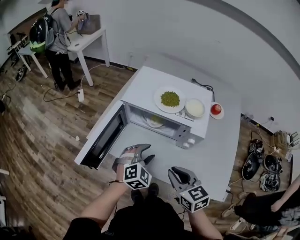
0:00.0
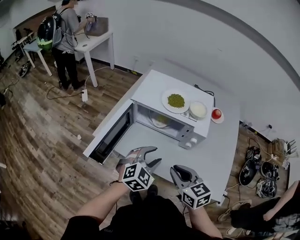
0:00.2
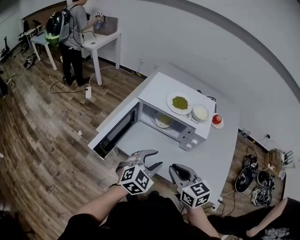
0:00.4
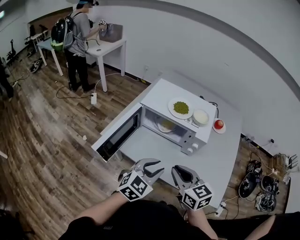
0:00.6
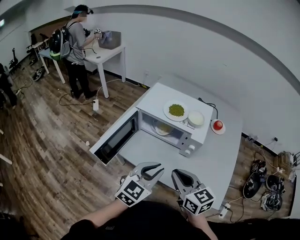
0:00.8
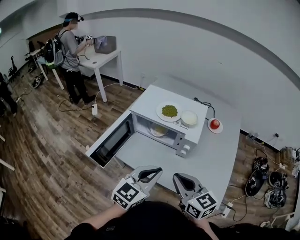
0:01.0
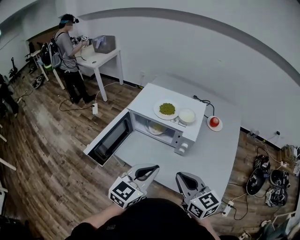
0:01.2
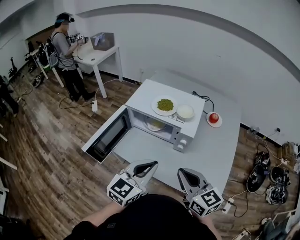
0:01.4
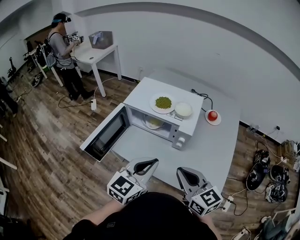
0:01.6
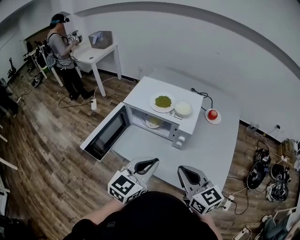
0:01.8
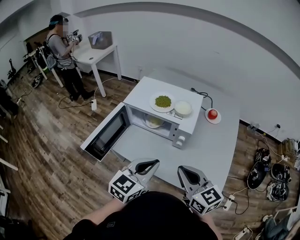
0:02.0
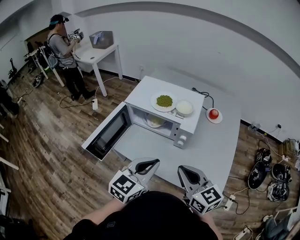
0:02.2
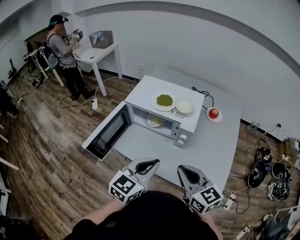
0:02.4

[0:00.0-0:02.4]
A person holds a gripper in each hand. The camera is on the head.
0:00.0 to 0:01.2: The left gripper shifts about 20 cm upward and backward, rotates about 50 degrees, and closes; the right gripper travels upward, backward and to the right by about 15 cm.
0:01.2 to 0:02.4: There are only small adjustments of the grippers.

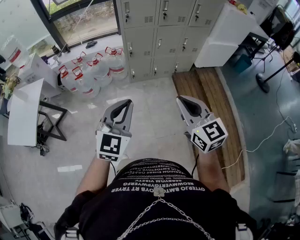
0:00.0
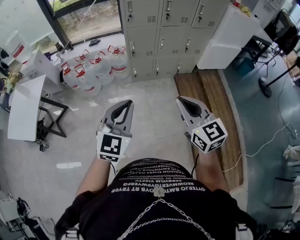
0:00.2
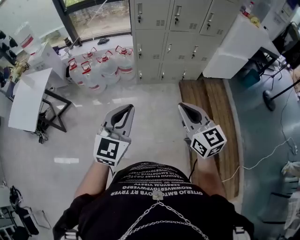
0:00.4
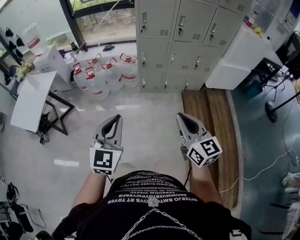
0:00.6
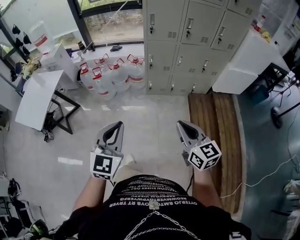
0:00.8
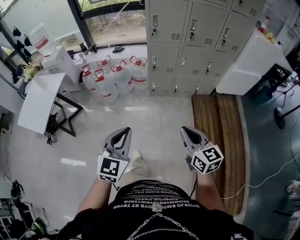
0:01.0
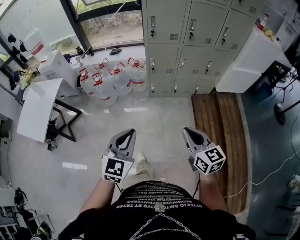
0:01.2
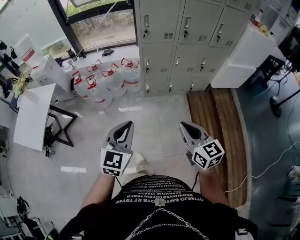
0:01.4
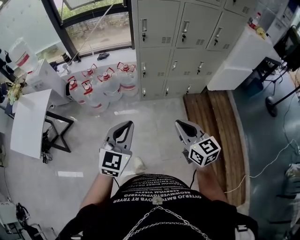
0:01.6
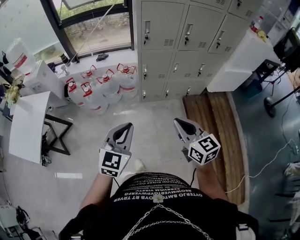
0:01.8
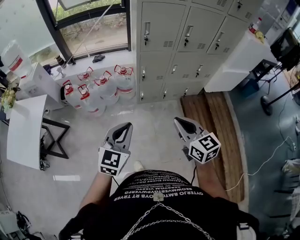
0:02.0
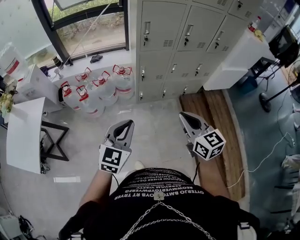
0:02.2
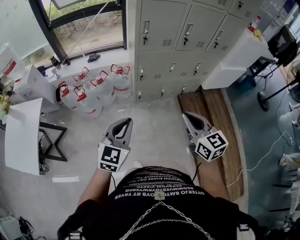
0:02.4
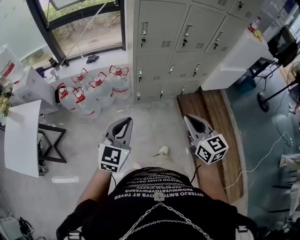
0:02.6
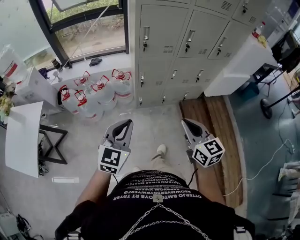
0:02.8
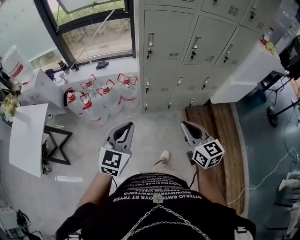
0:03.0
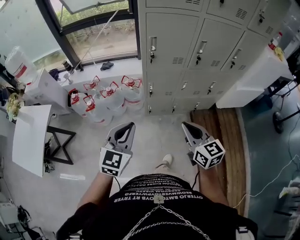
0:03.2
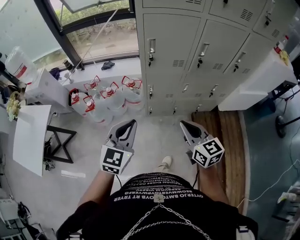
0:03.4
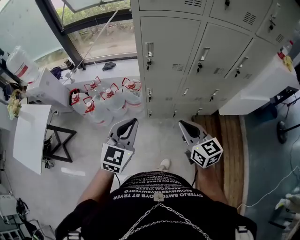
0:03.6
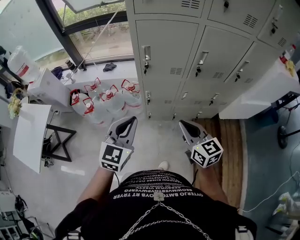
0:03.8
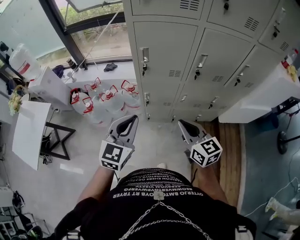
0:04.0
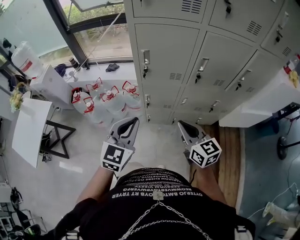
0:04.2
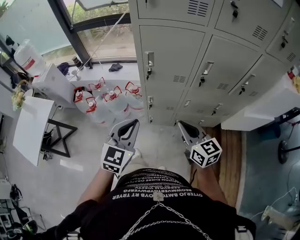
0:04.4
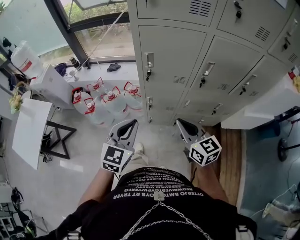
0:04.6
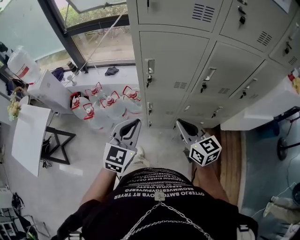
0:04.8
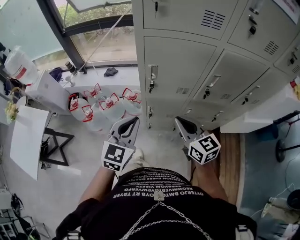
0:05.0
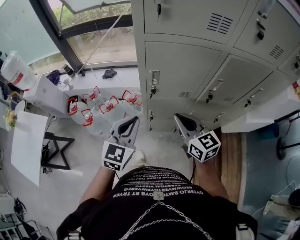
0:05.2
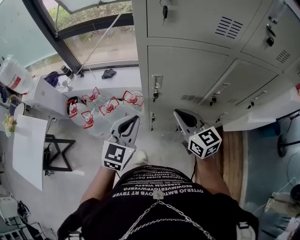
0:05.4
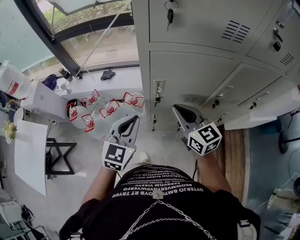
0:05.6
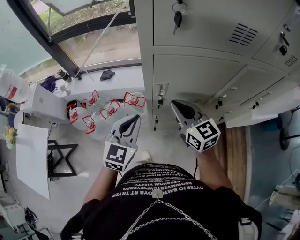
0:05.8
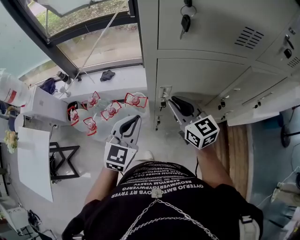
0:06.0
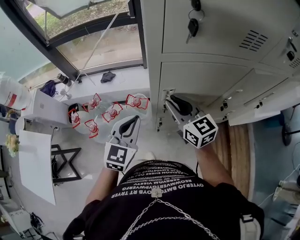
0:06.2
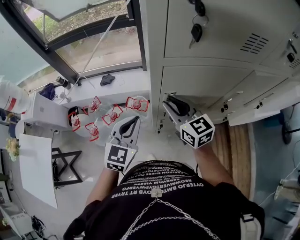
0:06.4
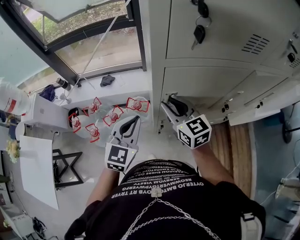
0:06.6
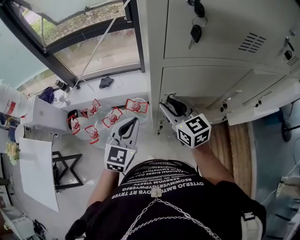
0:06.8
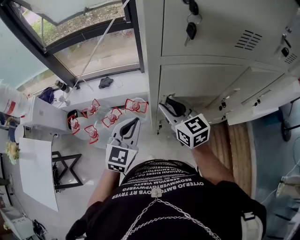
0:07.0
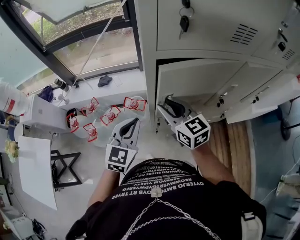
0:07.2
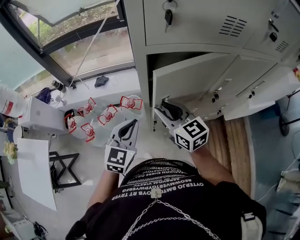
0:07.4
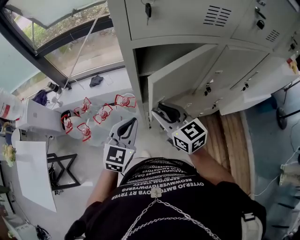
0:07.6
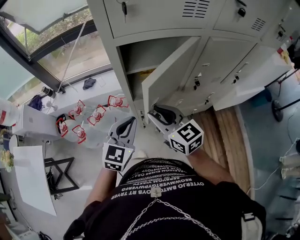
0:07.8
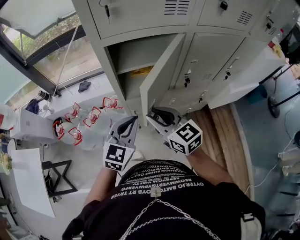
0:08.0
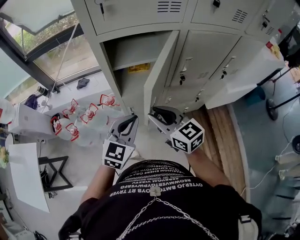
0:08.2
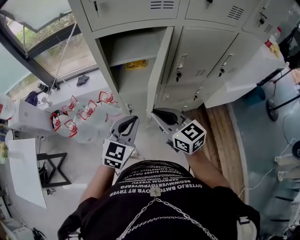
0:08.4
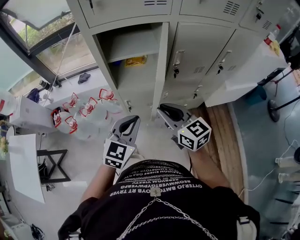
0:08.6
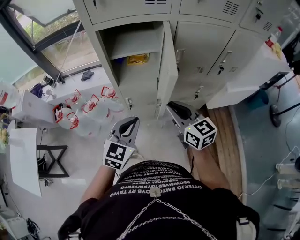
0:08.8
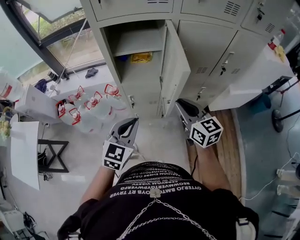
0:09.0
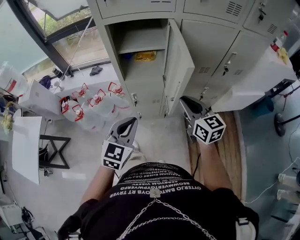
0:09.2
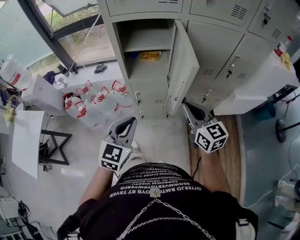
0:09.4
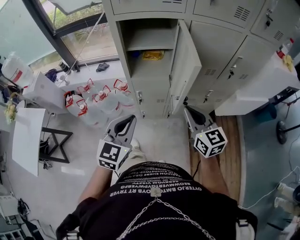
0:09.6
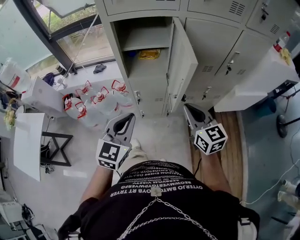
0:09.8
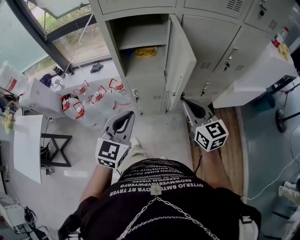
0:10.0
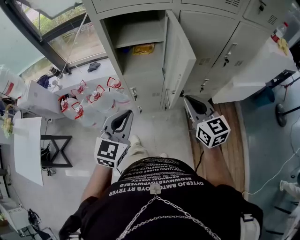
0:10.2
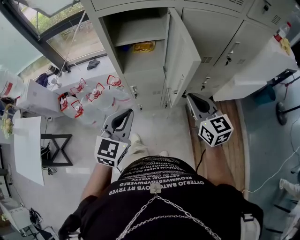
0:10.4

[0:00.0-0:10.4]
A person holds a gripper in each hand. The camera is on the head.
0:00.0 to 0:01.4: The left gripper is displaced forward by roughly 10 cm, while the right gripper is displaced forward and downward by some 10 cm.
0:01.4 to 0:03.0: The two grippers go roughly 20 cm forward.
0:03.0 to 0:04.4: Both grippers travel together forward and to the right, approximately 25 cm.
0:04.4 to 0:06.0: Both grippers move forward, approximately 25 cm.
0:06.0 to 0:07.4: The grippers stay close to where they were, moving slightly.
0:07.4 to 0:09.0: The left gripper is displaced backward and to the right by approximately 25 cm, while the right gripper is displaced to the right and backward by roughly 30 cm.
0:09.0 to 0:10.4: The grippers make only small movements.

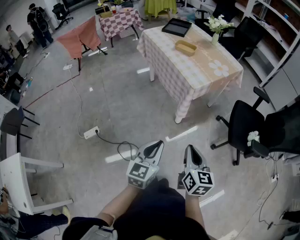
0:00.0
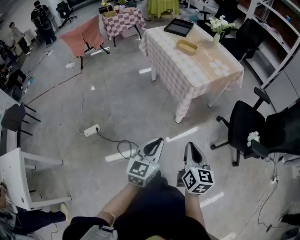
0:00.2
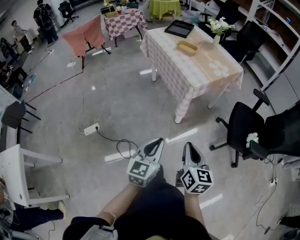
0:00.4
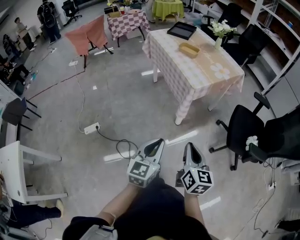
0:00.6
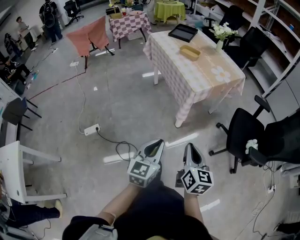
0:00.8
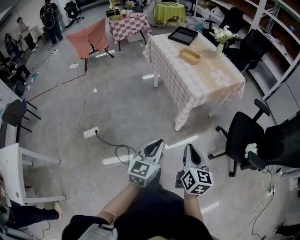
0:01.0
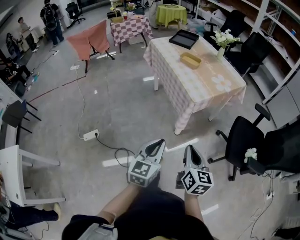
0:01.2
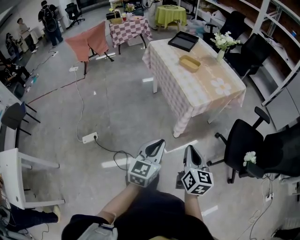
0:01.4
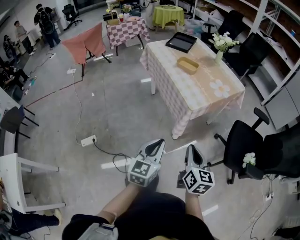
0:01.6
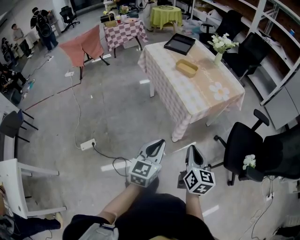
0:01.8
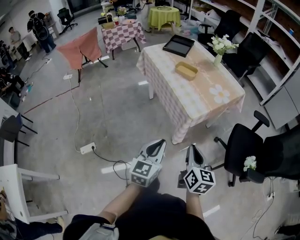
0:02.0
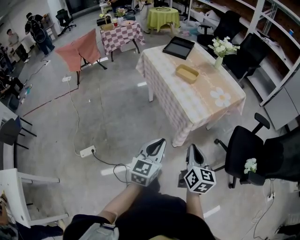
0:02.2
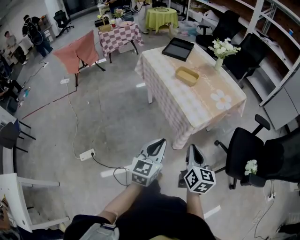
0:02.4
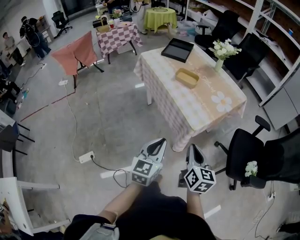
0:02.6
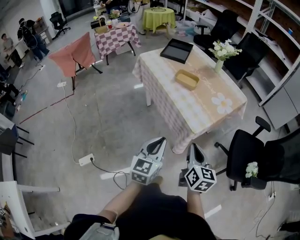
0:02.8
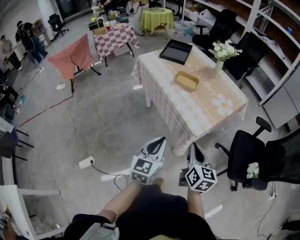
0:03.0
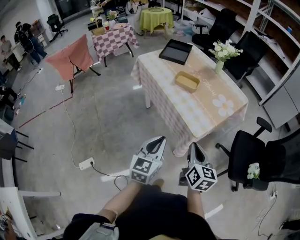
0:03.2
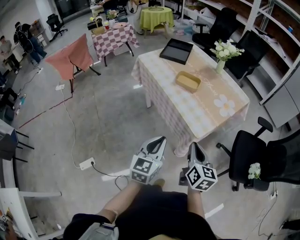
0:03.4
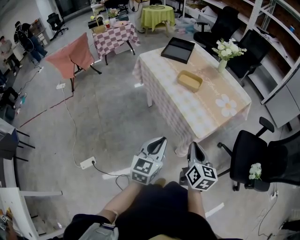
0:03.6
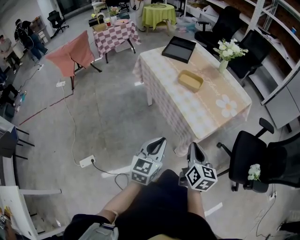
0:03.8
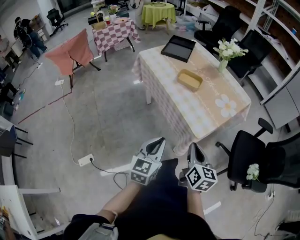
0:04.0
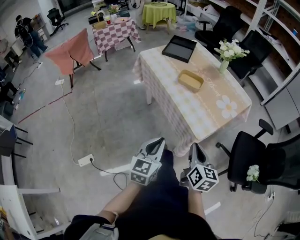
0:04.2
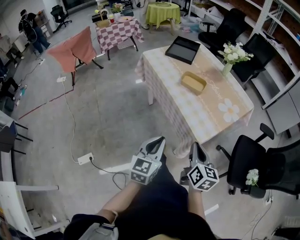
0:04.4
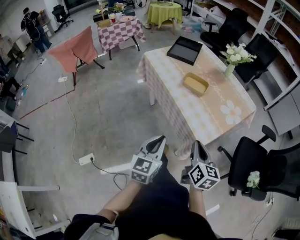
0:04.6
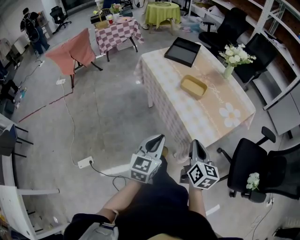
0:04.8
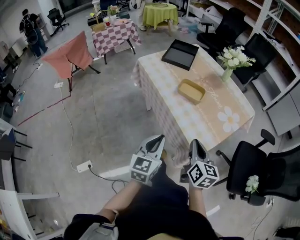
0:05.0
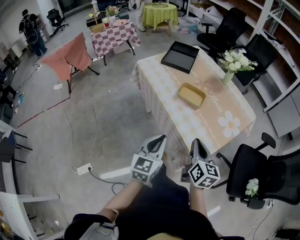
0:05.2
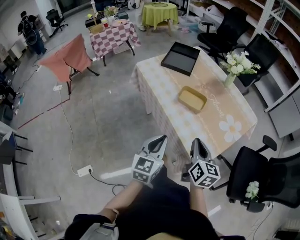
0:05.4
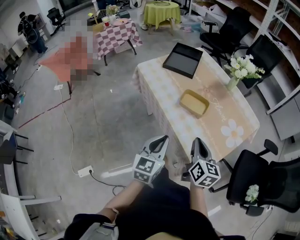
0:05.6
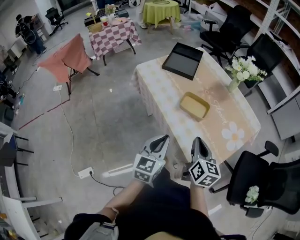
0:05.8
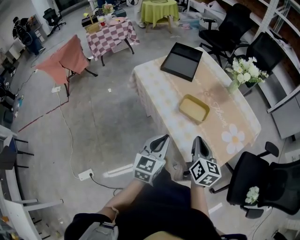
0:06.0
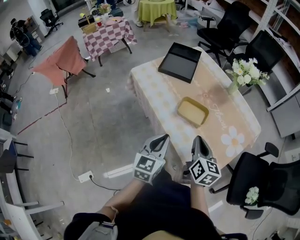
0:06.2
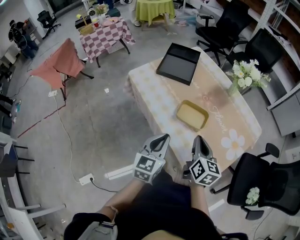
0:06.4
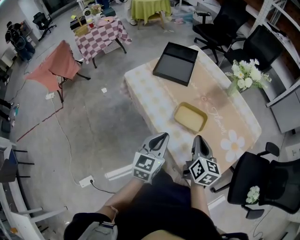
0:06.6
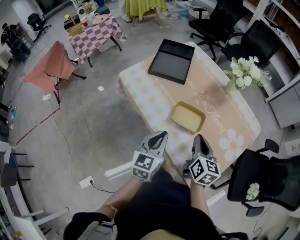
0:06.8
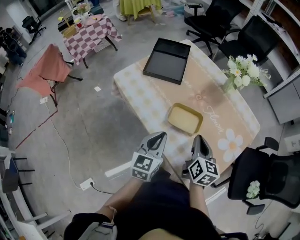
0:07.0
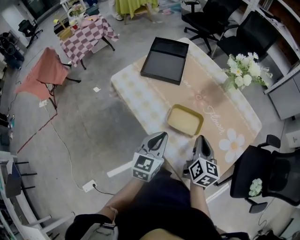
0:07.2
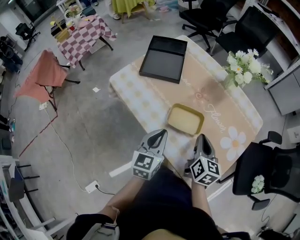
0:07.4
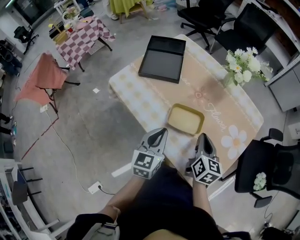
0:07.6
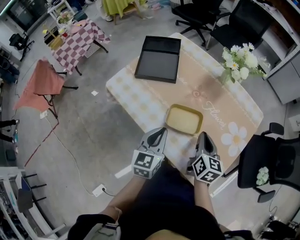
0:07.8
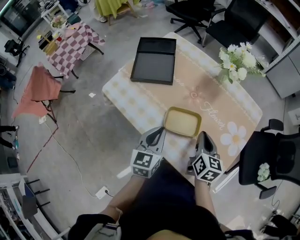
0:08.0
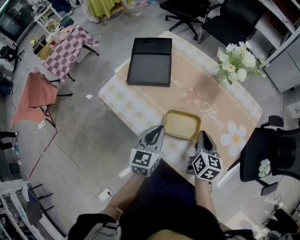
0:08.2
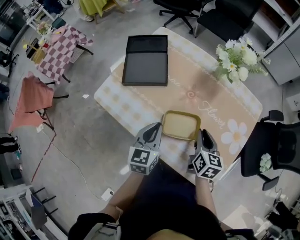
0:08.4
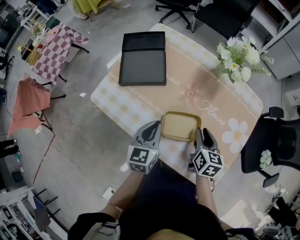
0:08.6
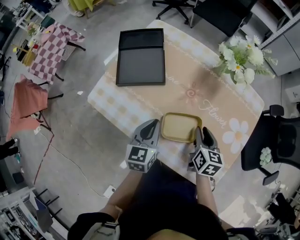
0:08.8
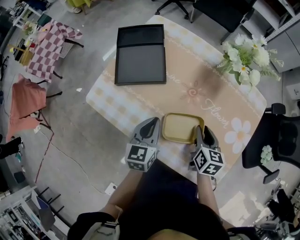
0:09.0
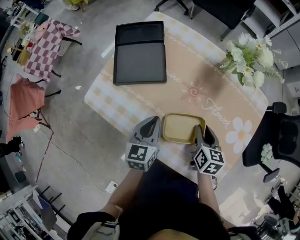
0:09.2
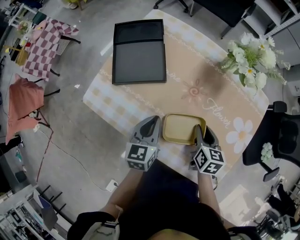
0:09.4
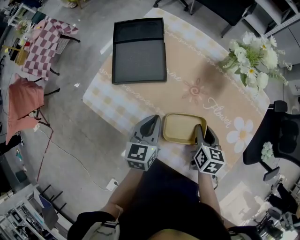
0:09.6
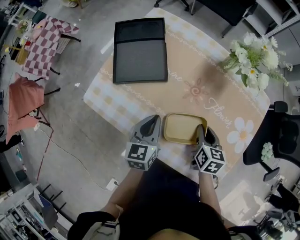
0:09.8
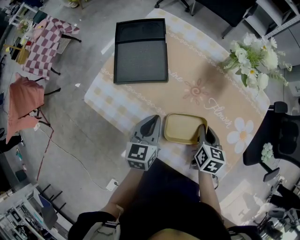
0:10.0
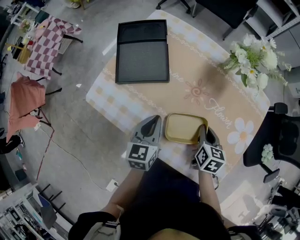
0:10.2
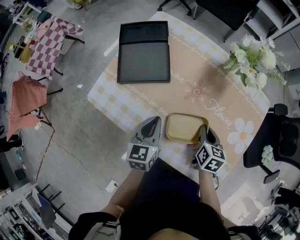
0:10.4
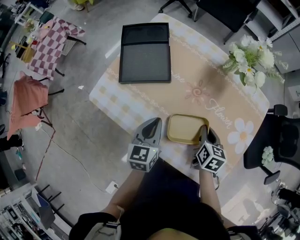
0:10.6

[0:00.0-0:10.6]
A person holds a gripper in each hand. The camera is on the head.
0:00.0 to 0:01.6: The two grippers go about 10 cm forward.
0:01.6 to 0:03.0: The grippers both shift forward by approximately 15 cm.
0:03.0 to 0:04.6: Both grippers move forward, roughly 5 cm.
0:04.6 to 0:06.0: The grippers both shift forward by approximately 20 cm.
0:06.0 to 0:07.6: Both grippers move forward, roughly 15 cm.
0:07.6 to 0:09.0: The left gripper is displaced forward by about 10 cm; the right gripper moves forward and downward, approximately 10 cm, and opens up.
0:09.0 to 0:10.6: The right gripper closes its fingers.
